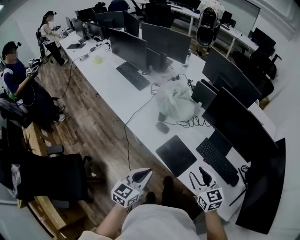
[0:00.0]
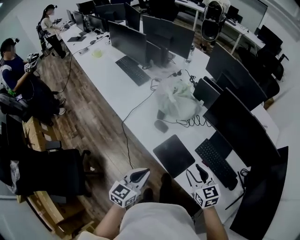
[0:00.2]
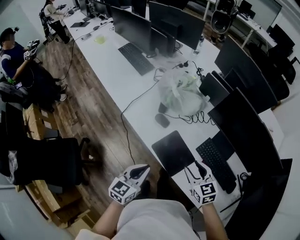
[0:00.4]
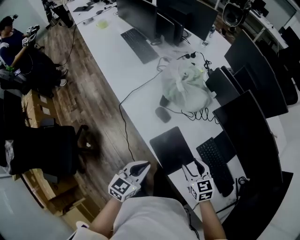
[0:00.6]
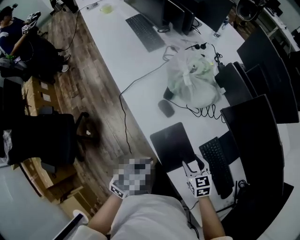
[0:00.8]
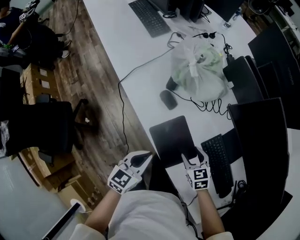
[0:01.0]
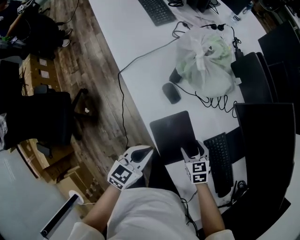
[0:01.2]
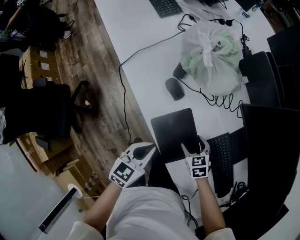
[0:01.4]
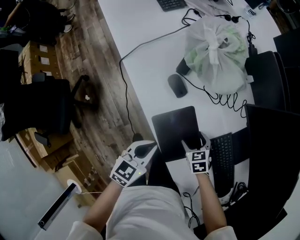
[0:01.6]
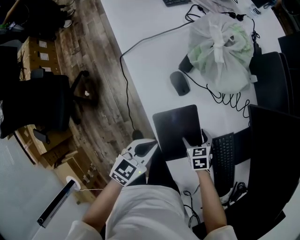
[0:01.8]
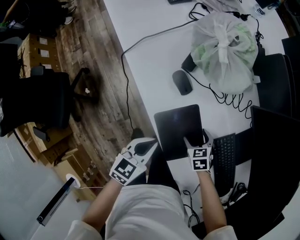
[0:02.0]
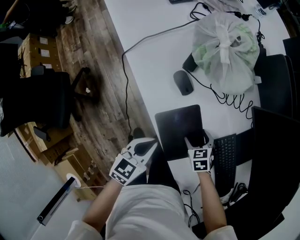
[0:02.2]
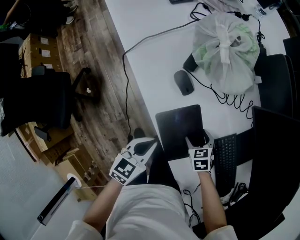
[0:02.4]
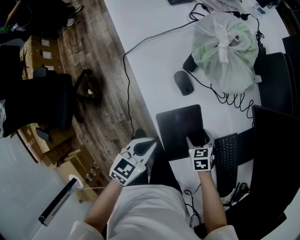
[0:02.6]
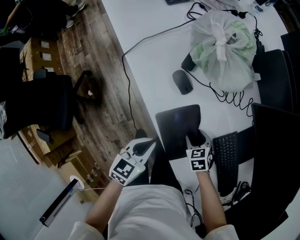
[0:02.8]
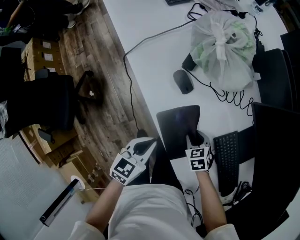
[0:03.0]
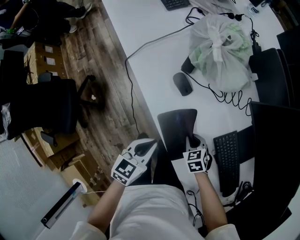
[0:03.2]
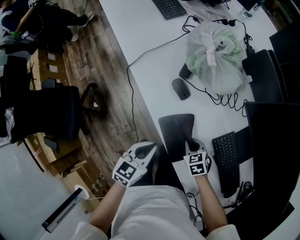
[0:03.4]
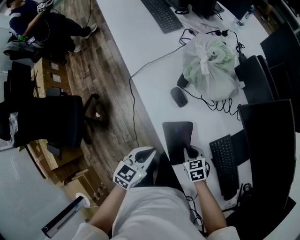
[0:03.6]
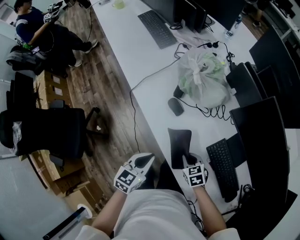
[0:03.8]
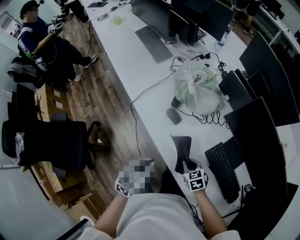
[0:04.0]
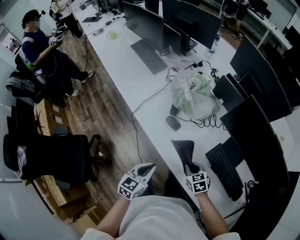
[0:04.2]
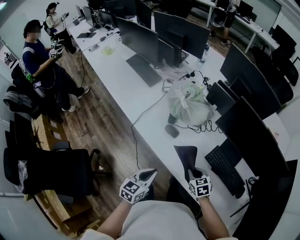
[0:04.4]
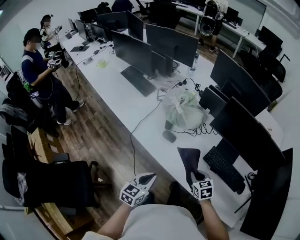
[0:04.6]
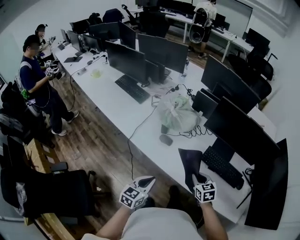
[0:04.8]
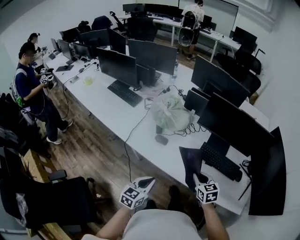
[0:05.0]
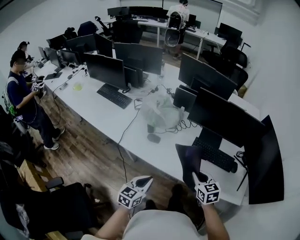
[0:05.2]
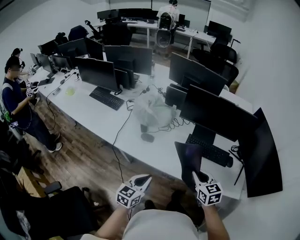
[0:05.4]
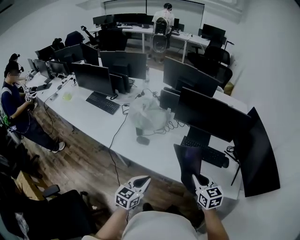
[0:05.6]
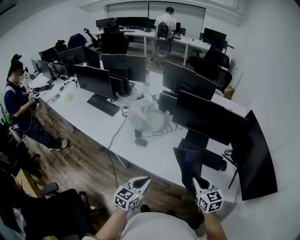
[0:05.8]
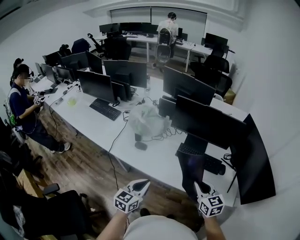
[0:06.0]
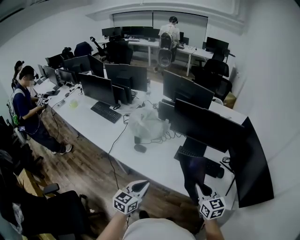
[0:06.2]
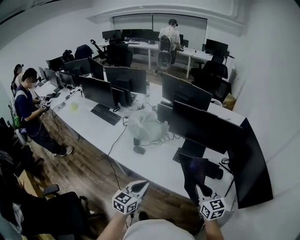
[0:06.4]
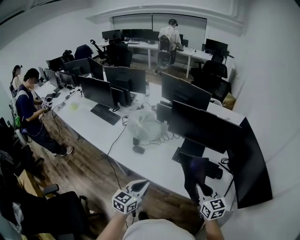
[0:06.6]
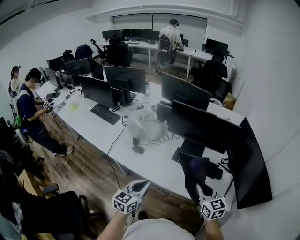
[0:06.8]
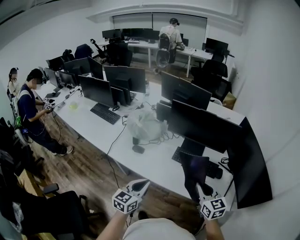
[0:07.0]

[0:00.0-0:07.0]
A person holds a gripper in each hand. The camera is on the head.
0.0 to 1.4 s: The left gripper travels downward and forward by some 20 cm, and turns by some 20 degrees. Meanwhile the right gripper moves downward and forward, about 35 cm, points its fingers roughly 30 degrees further downward, and opens.
1.4 to 2.8 s: The grippers move only a little.
2.8 to 4.2 s: Both grippers move upward, some 15 cm. The right gripper closes its fingers.
4.2 to 5.6 s: The left gripper moves approximately 15 cm, and turns by approximately 30 degrees; the right gripper travels upward by some 25 cm, and turns by approximately 40 degrees.
5.6 to 7.0 s: The two grippers go some 10 cm to the right and upward.

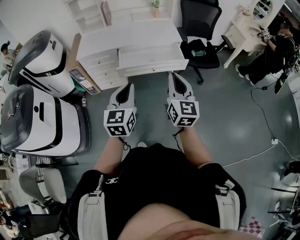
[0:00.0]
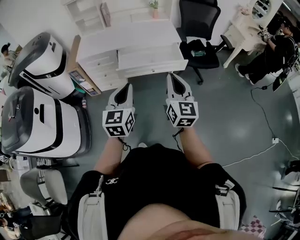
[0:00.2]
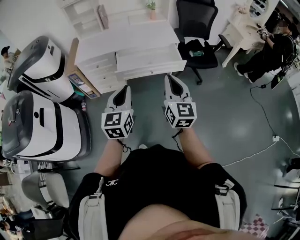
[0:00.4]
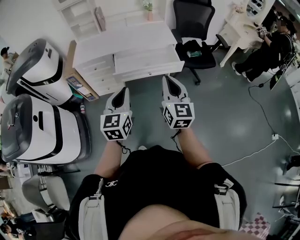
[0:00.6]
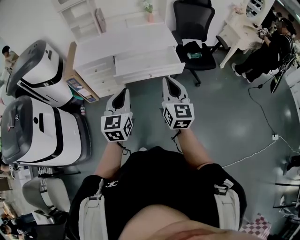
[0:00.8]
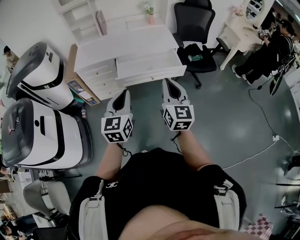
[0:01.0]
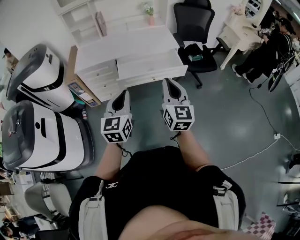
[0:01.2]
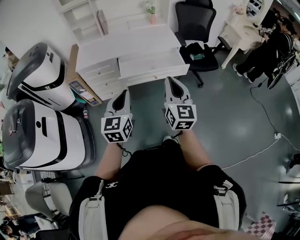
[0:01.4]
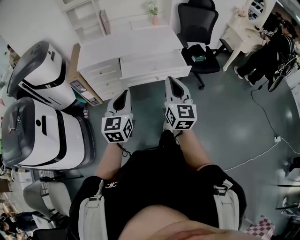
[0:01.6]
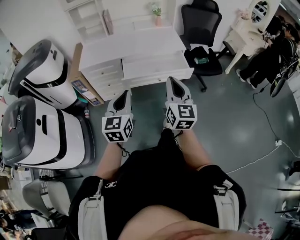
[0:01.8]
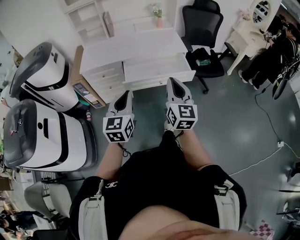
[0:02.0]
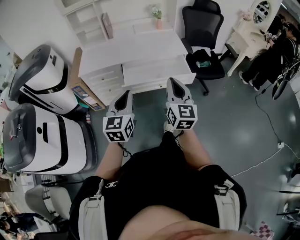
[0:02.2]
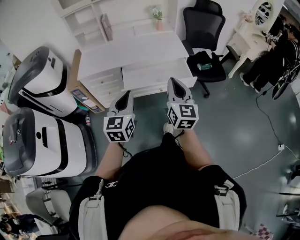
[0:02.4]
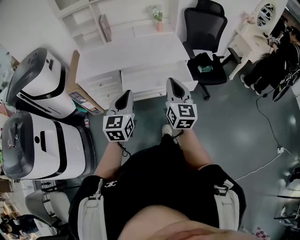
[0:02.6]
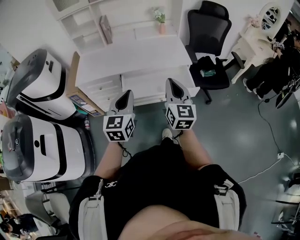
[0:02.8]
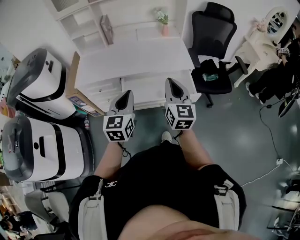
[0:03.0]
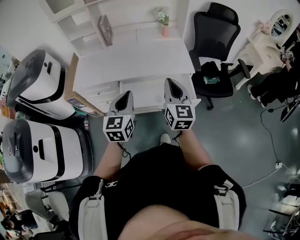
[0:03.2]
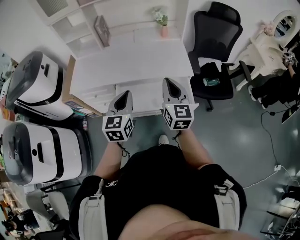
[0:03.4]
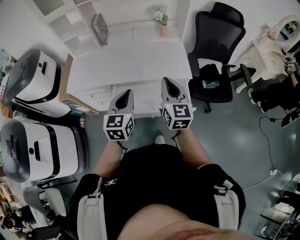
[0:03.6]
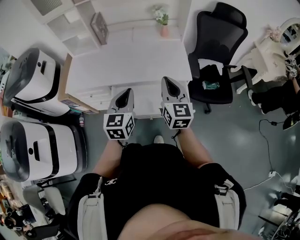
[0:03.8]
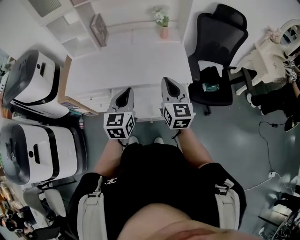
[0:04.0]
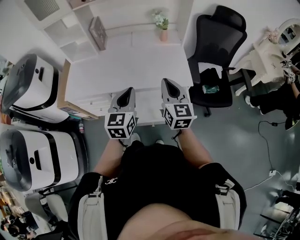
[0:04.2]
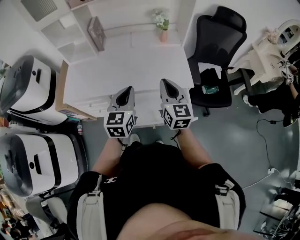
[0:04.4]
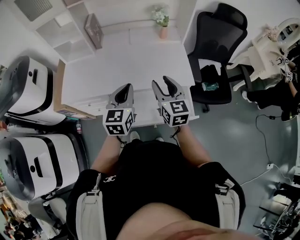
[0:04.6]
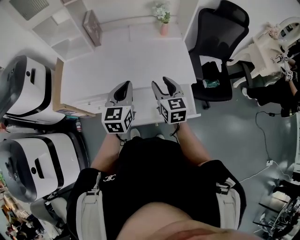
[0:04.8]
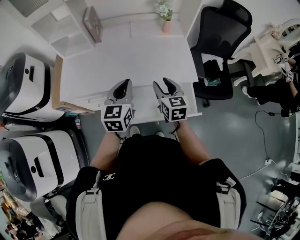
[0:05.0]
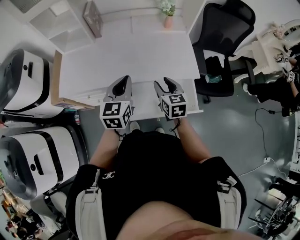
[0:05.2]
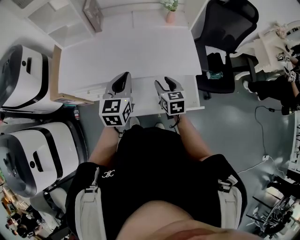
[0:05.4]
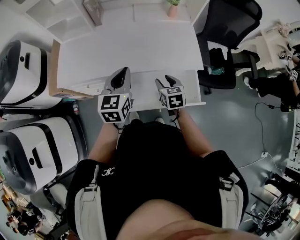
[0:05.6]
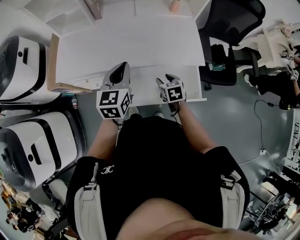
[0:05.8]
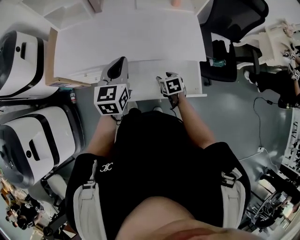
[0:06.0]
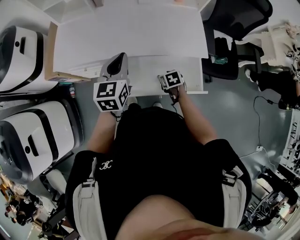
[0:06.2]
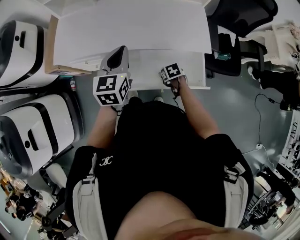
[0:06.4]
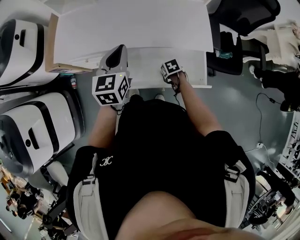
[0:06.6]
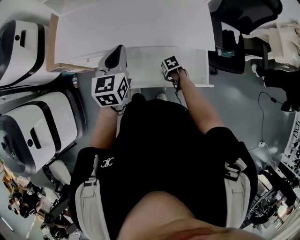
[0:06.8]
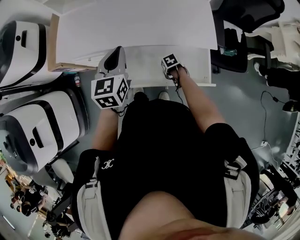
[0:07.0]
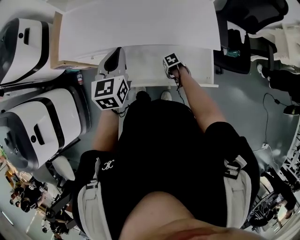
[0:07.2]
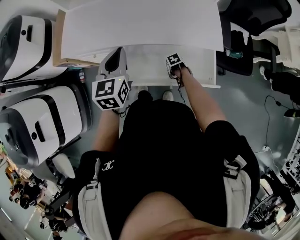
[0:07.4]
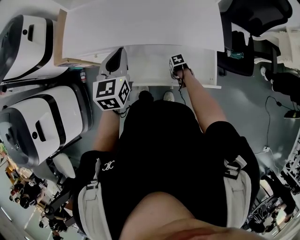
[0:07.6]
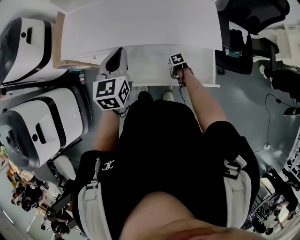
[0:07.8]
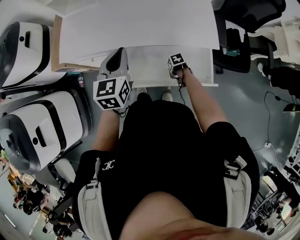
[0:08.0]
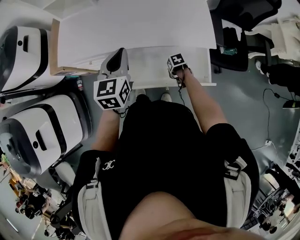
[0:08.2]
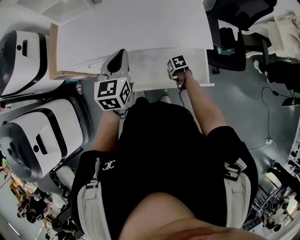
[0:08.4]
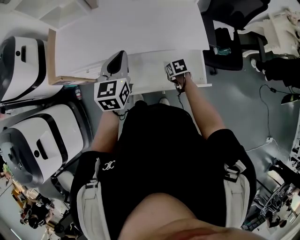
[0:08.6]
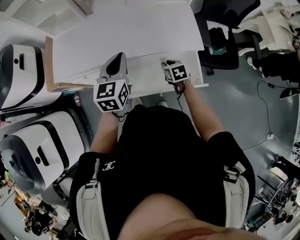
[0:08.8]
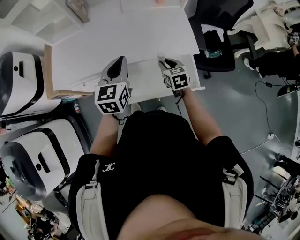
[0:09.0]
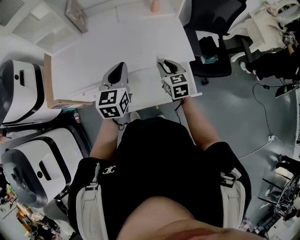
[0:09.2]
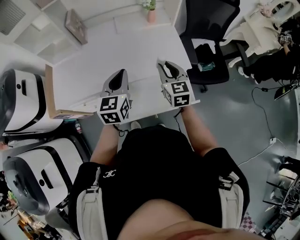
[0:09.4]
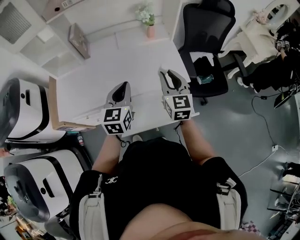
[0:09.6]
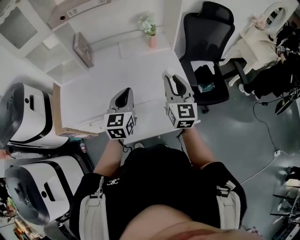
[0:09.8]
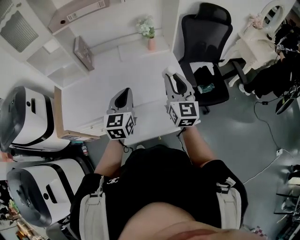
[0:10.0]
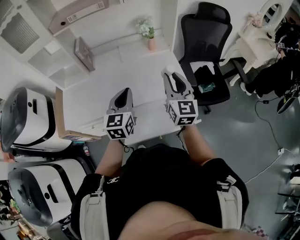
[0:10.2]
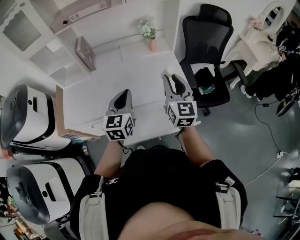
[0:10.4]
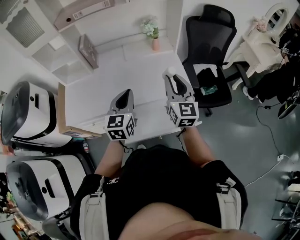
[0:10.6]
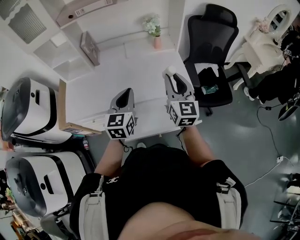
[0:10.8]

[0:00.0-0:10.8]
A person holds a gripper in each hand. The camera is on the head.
0.0 to 1.6 s: Both grippers move to the left, some 5 cm.
1.6 to 3.0 s: Both grippers move forward, some 25 cm.
3.0 to 4.6 s: The two grippers go about 25 cm forward. The right gripper opens its fingers.
4.6 to 6.2 s: The left gripper moves to the left and downward, roughly 10 cm. The right gripper shifts some 30 cm downward, and angles its fingers downward, by some 60 degrees.
6.2 to 7.8 s: The right gripper shifts about 10 cm downward, swivels about 30 degrees, and closes up.
7.8 to 9.2 s: The left gripper shifts by roughly 10 cm, while the right gripper moves upward, about 30 cm, and angles its fingers upward, by roughly 50 degrees.
9.2 to 10.8 s: The left gripper goes some 5 cm upward. The right gripper goes about 20 cm upward, and points its fingers roughly 30 degrees further upward.

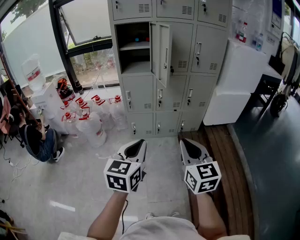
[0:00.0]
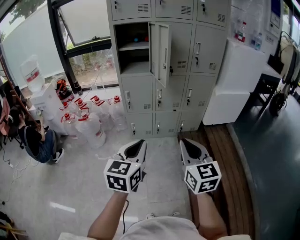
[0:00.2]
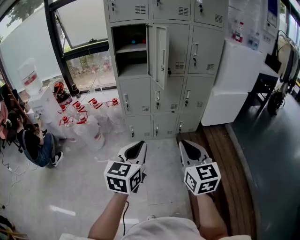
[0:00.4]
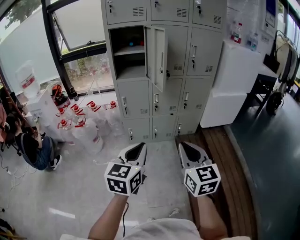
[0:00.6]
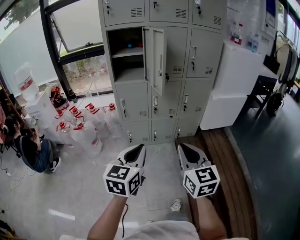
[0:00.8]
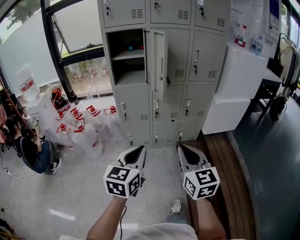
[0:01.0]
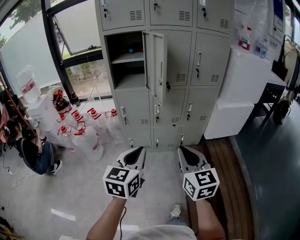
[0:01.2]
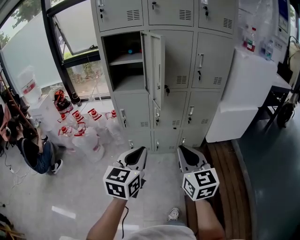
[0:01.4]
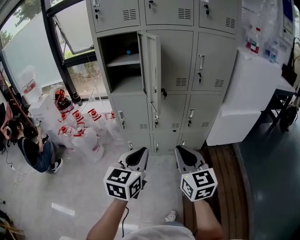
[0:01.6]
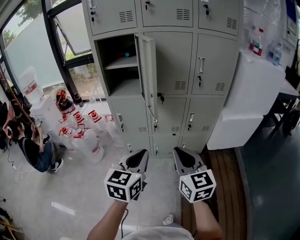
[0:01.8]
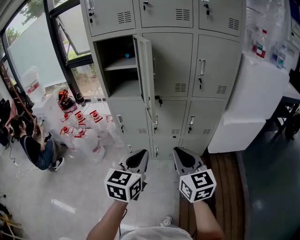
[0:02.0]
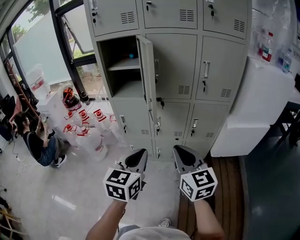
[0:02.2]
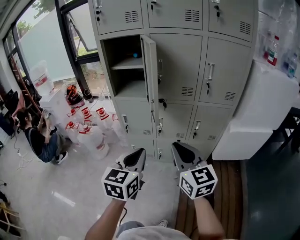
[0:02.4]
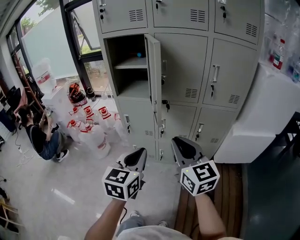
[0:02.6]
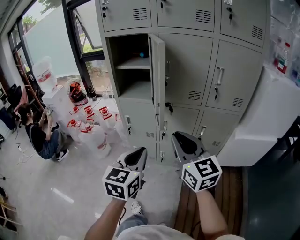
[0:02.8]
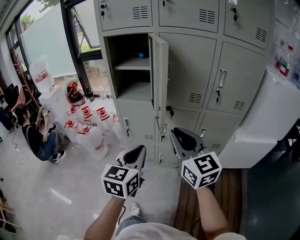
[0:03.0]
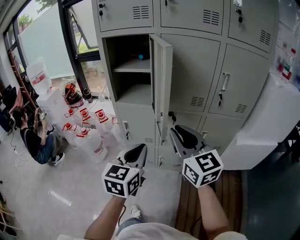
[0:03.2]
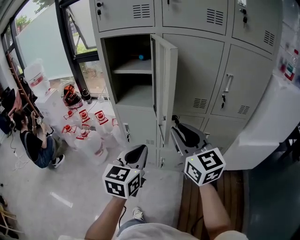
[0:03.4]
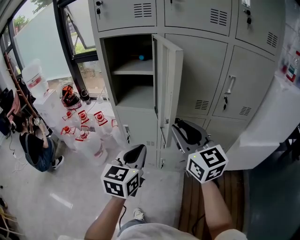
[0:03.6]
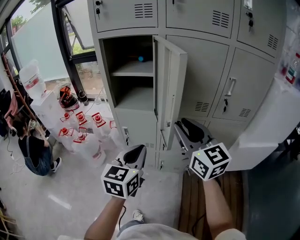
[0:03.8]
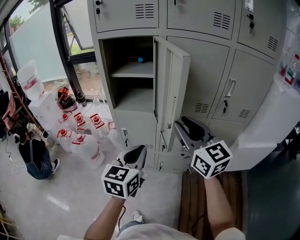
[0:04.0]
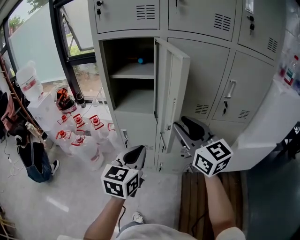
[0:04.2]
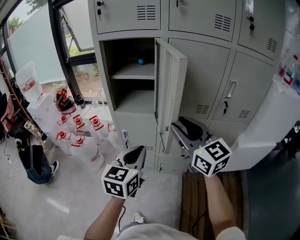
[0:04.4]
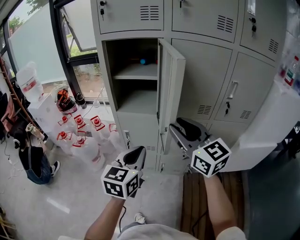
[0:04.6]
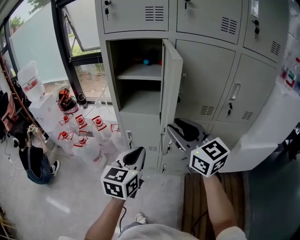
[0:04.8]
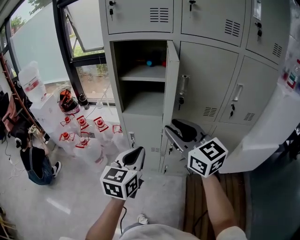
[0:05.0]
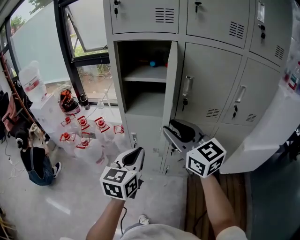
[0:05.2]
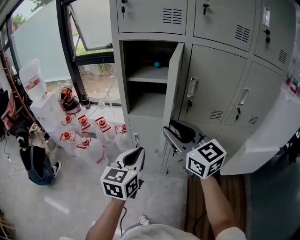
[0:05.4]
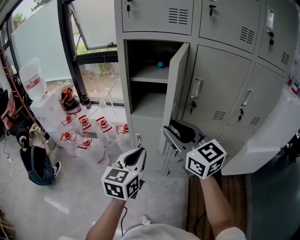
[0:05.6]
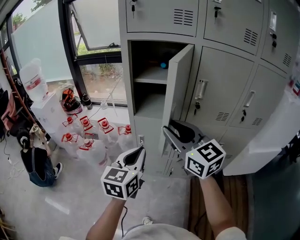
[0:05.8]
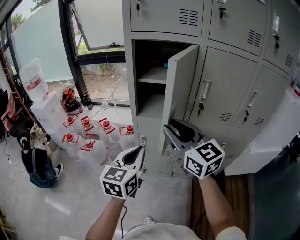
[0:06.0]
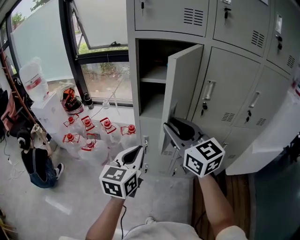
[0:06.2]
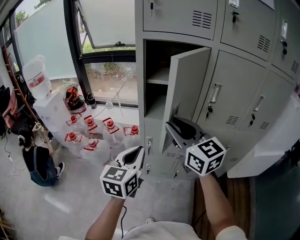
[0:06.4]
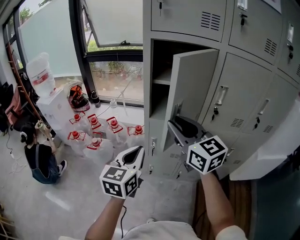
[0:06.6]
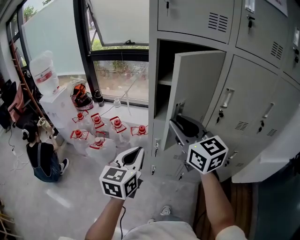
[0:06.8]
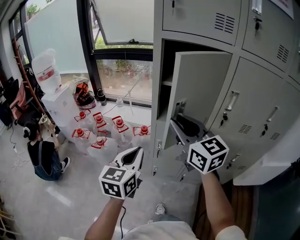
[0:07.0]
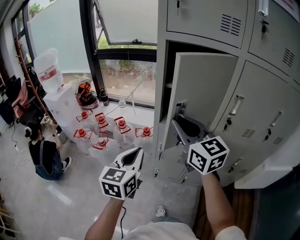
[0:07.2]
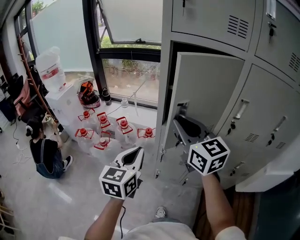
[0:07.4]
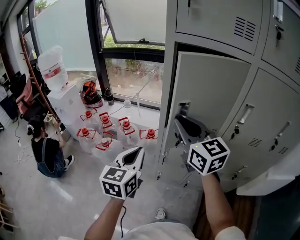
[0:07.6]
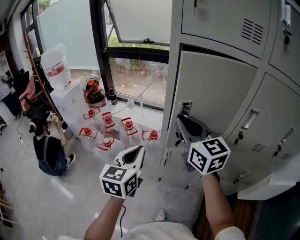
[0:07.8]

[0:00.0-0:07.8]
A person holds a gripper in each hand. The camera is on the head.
0.0 to 1.6 s: The right gripper travels forward by about 20 cm. The left gripper is displaced forward and to the right by some 20 cm.
1.6 to 3.2 s: Both grippers move forward, roughly 20 cm.
3.2 to 4.6 s: The left gripper moves forward and to the left, approximately 10 cm; the right gripper travels forward by approximately 10 cm, and opens its fingers.
4.6 to 6.2 s: Both grippers travel together to the left and forward, roughly 15 cm.
6.2 to 7.8 s: Both grippers travel together forward and to the left, roughly 15 cm.
